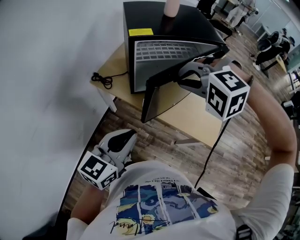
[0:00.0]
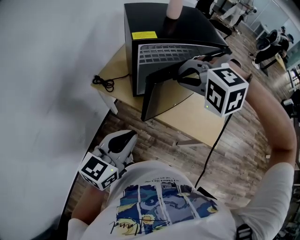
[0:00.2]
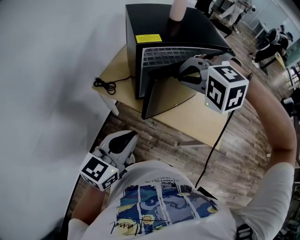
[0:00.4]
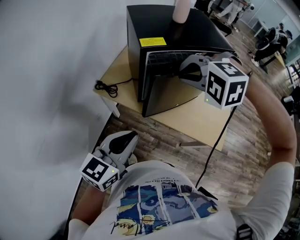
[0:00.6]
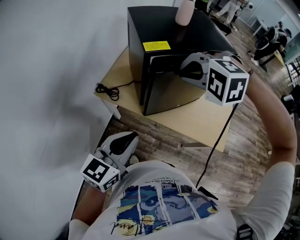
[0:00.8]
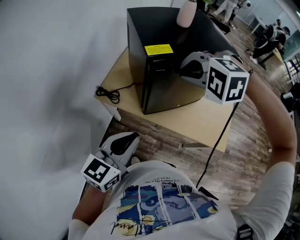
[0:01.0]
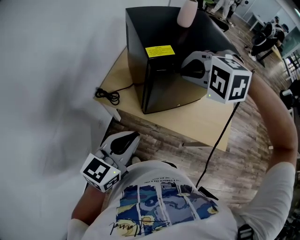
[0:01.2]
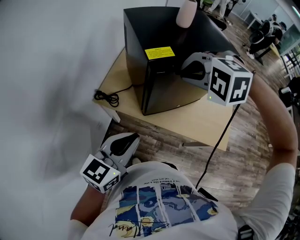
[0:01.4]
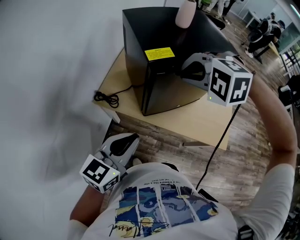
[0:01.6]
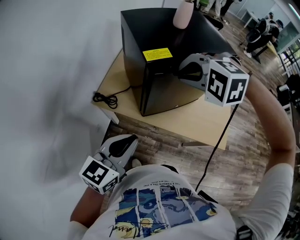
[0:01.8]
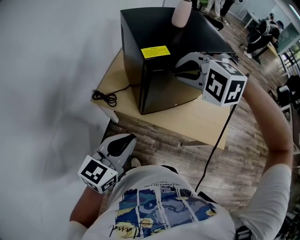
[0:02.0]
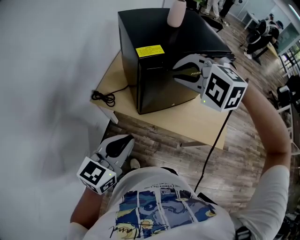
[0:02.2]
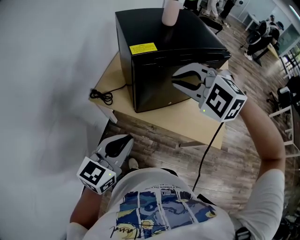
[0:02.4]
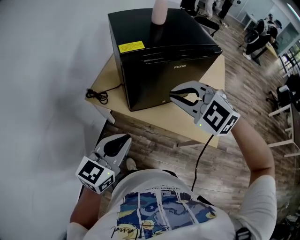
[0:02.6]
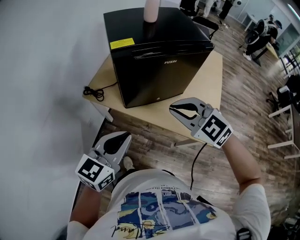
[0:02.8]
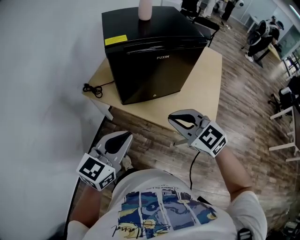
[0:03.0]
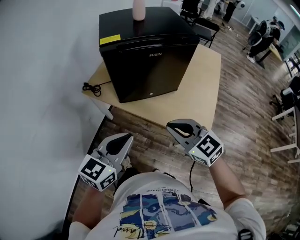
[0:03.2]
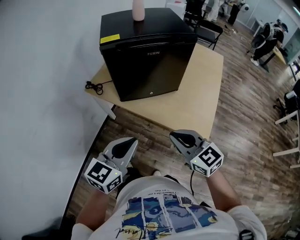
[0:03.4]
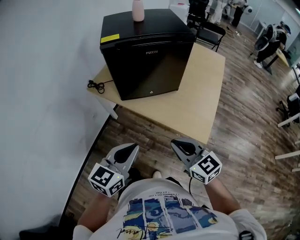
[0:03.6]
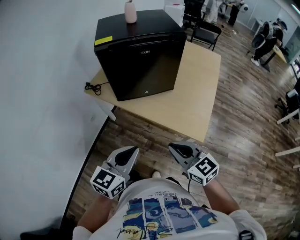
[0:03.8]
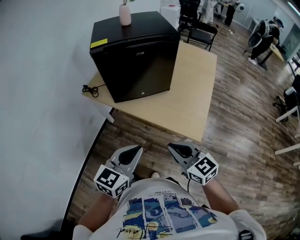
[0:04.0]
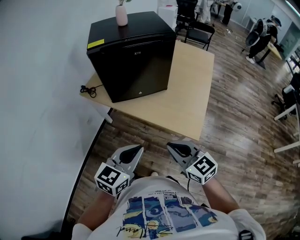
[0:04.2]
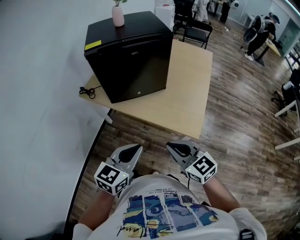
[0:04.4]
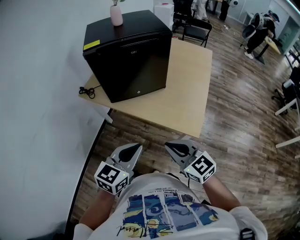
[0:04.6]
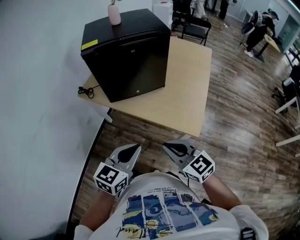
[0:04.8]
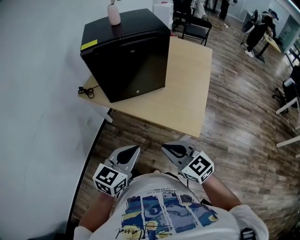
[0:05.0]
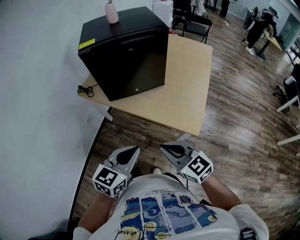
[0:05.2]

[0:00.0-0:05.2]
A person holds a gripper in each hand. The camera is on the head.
0:00.0 to 0:01.8: The grippers both shift forward and to the left by some 15 cm.
0:01.8 to 0:03.4: The left gripper is displaced to the right and backward by approximately 25 cm, while the right gripper travels backward and to the right by some 35 cm, and points its fingers about 40 degrees further upward.
0:03.4 to 0:05.2: The right gripper travels backward by some 10 cm; the left gripper travels to the right and backward by some 10 cm.

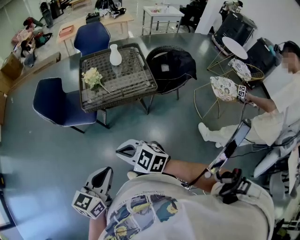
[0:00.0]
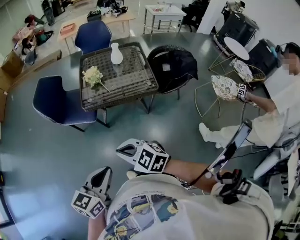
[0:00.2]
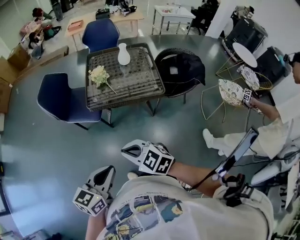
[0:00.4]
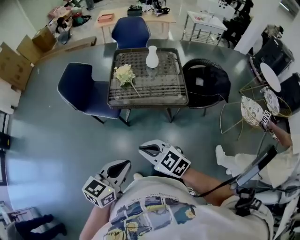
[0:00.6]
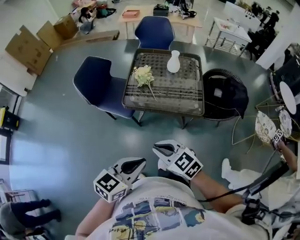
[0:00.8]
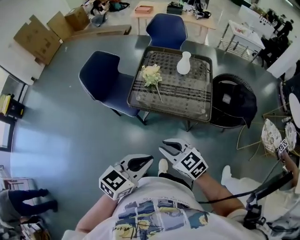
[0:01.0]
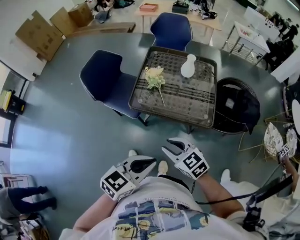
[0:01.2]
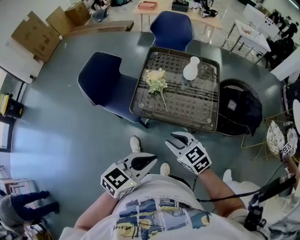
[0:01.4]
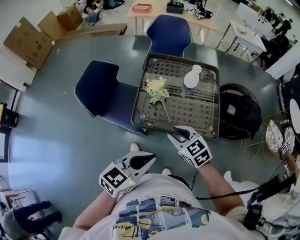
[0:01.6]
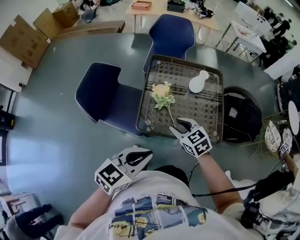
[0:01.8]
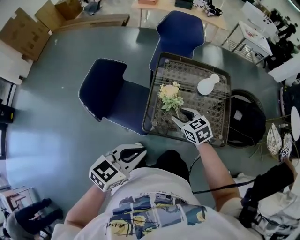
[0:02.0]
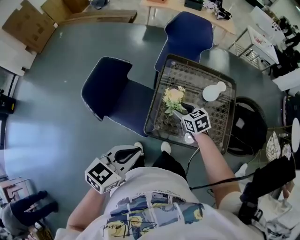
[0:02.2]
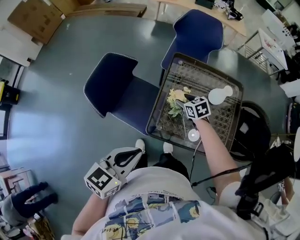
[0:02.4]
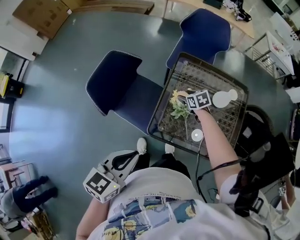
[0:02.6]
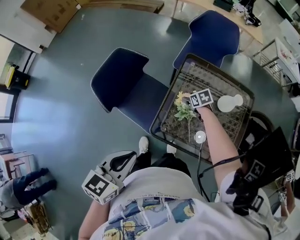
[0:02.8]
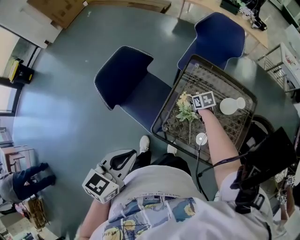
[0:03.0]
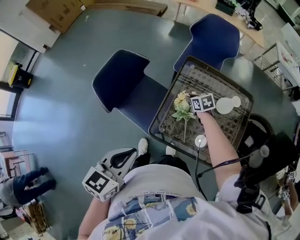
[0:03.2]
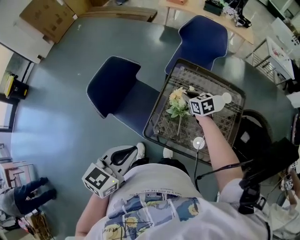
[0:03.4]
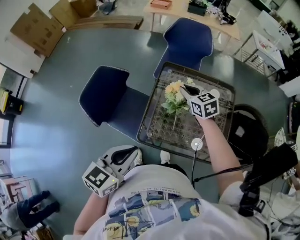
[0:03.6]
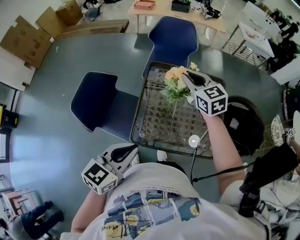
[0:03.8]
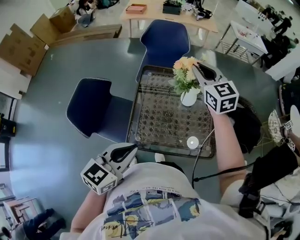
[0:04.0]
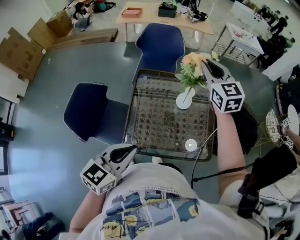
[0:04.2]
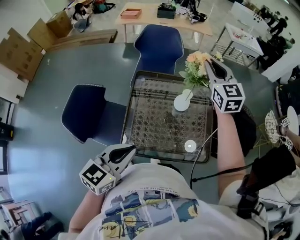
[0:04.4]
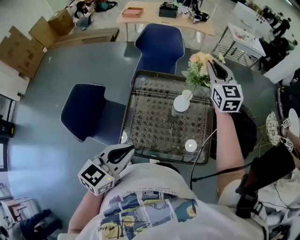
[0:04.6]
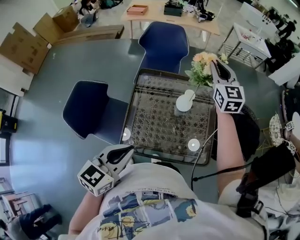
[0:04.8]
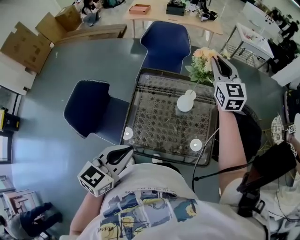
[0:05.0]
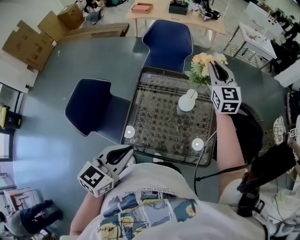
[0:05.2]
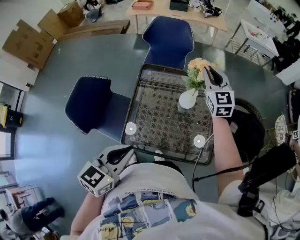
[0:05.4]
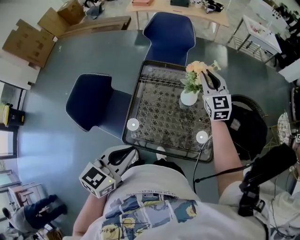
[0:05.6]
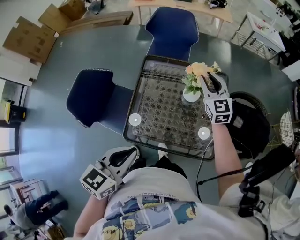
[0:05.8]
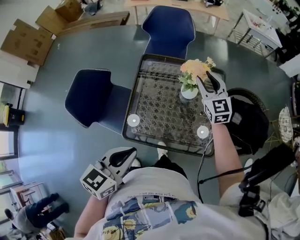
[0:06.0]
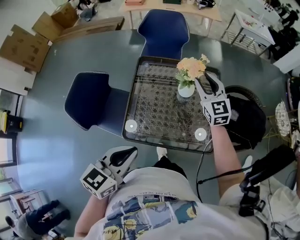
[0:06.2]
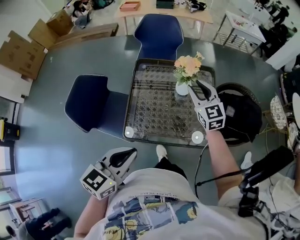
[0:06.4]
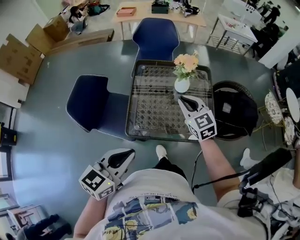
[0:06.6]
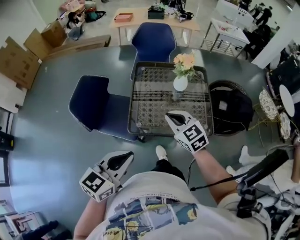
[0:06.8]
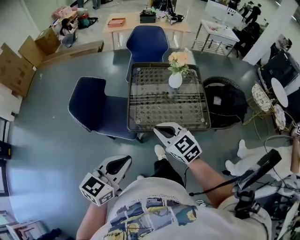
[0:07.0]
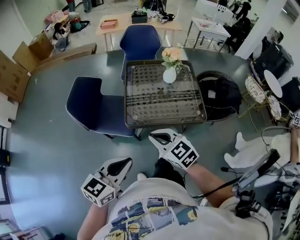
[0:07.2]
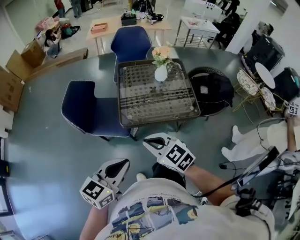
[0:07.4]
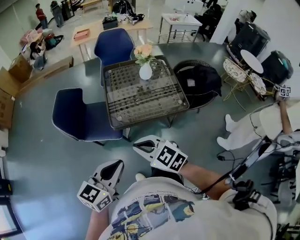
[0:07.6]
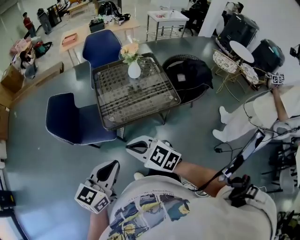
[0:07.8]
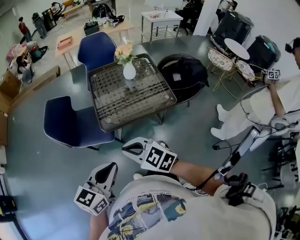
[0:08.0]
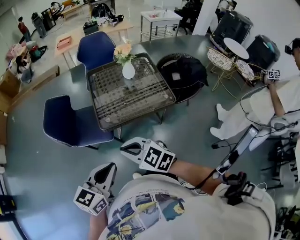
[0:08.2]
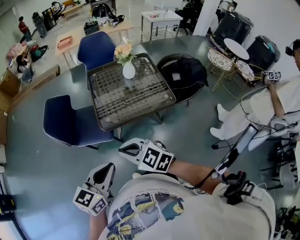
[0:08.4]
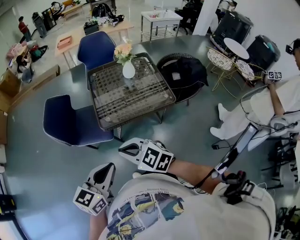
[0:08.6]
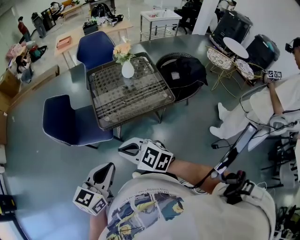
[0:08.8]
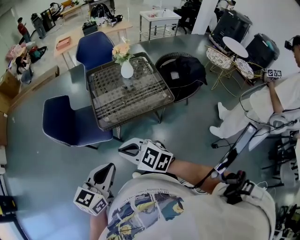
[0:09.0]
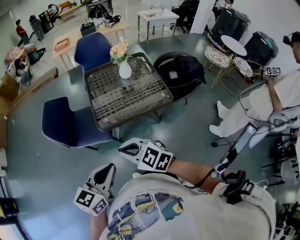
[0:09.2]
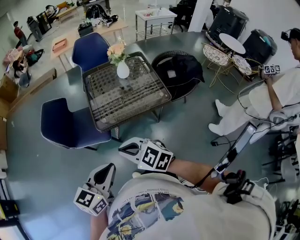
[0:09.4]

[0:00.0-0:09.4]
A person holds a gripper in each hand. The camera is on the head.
0:00.0 to 0:01.6: The grippers both shift forward by approximately 30 cm. The right gripper opens its fingers.
0:01.6 to 0:03.2: The left gripper ends up approximately 25 cm from where it was, and turns by some 30 degrees. The right gripper changes place by approximately 40 cm, rotates some 20 degrees, and opens and closes again.
0:03.2 to 0:04.8: The right gripper shifts roughly 35 cm upward, and points its fingers about 50 degrees further upward; the left gripper ends up some 15 cm from where it was, and turns by some 20 degrees.
0:04.8 to 0:06.2: The left gripper moves some 5 cm; the right gripper travels downward and backward by some 15 cm, and opens.
0:06.2 to 0:07.8: The left gripper heads backward, covering approximately 30 cm, while the right gripper goes roughly 60 cm backward and to the left, changes its angle by some 30 degrees, and closes its fingers.
0:07.8 to 0:09.4: The grippers move only a little.

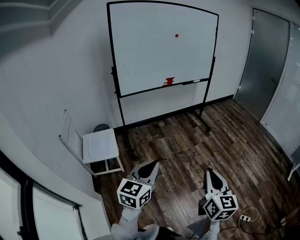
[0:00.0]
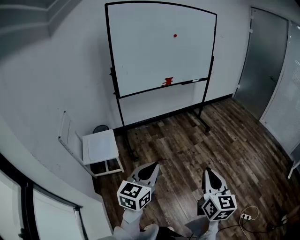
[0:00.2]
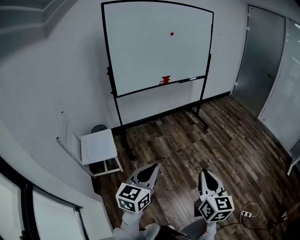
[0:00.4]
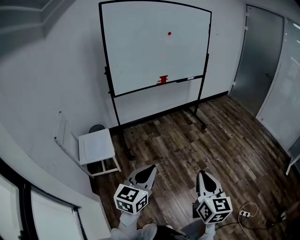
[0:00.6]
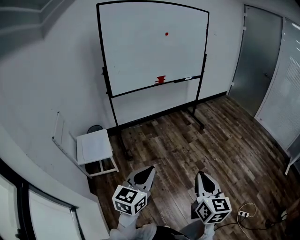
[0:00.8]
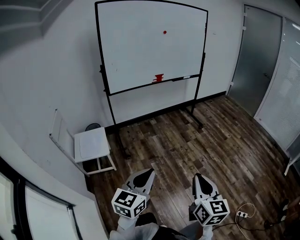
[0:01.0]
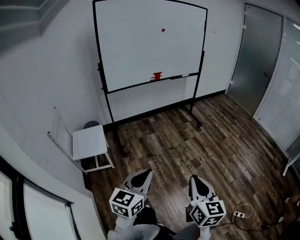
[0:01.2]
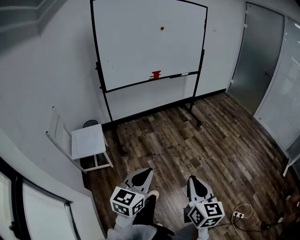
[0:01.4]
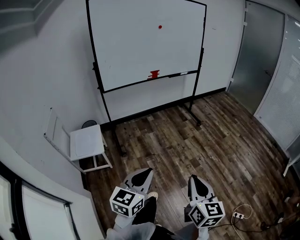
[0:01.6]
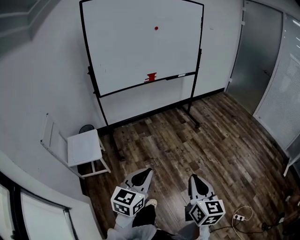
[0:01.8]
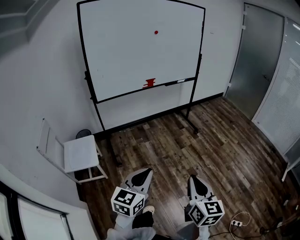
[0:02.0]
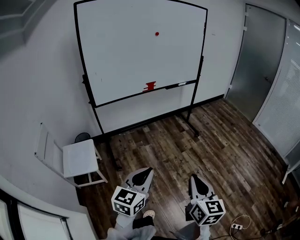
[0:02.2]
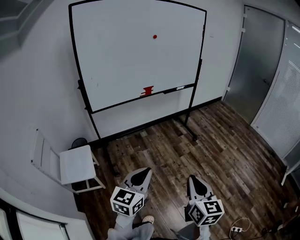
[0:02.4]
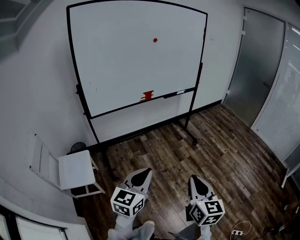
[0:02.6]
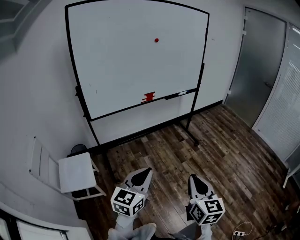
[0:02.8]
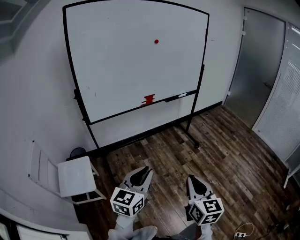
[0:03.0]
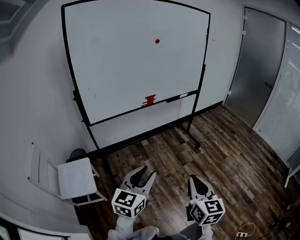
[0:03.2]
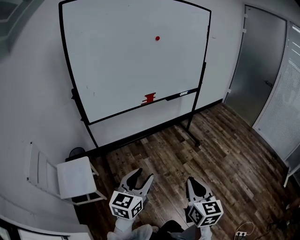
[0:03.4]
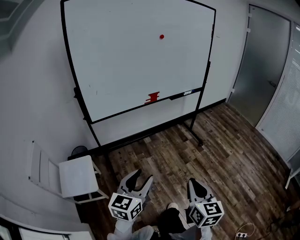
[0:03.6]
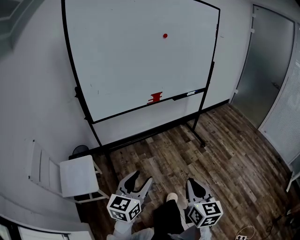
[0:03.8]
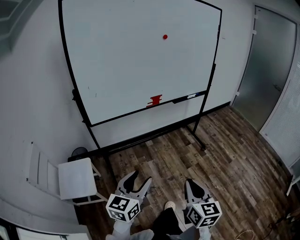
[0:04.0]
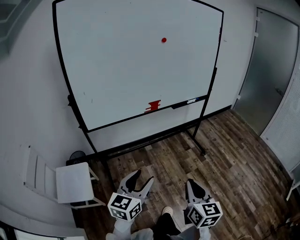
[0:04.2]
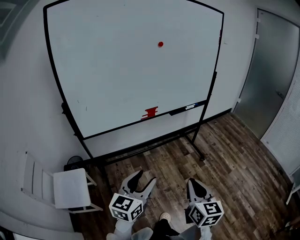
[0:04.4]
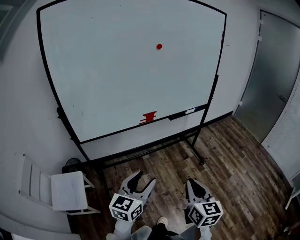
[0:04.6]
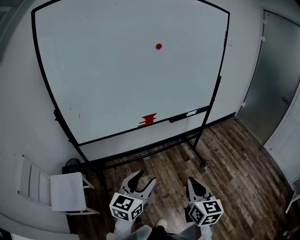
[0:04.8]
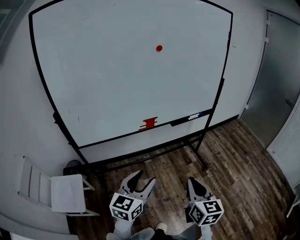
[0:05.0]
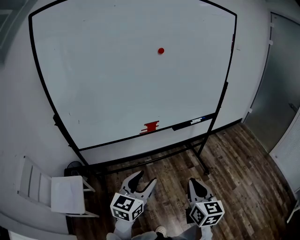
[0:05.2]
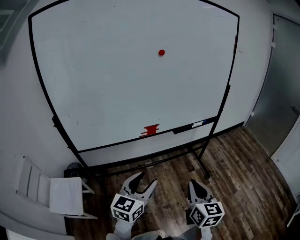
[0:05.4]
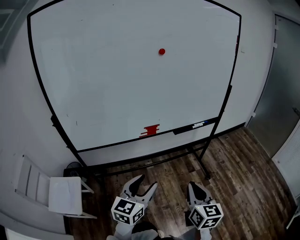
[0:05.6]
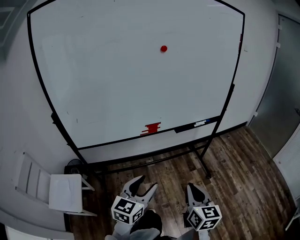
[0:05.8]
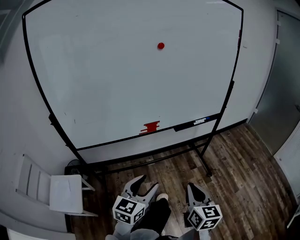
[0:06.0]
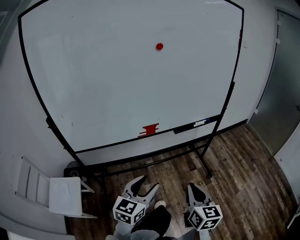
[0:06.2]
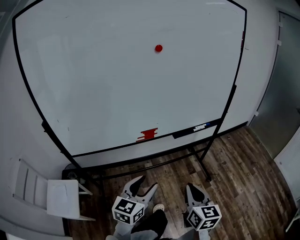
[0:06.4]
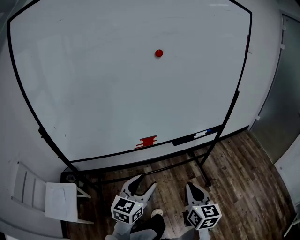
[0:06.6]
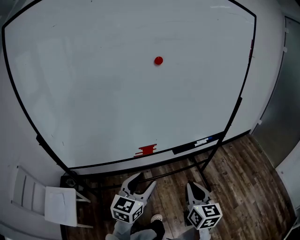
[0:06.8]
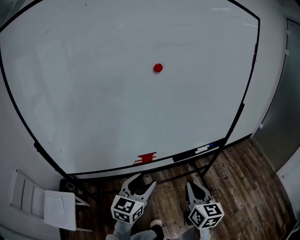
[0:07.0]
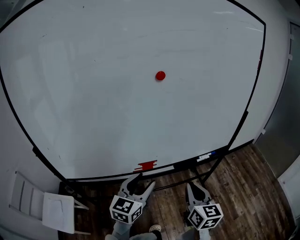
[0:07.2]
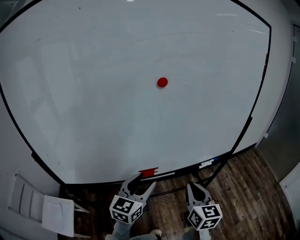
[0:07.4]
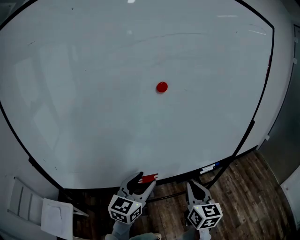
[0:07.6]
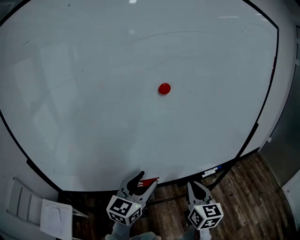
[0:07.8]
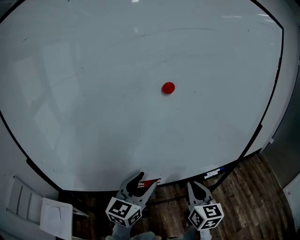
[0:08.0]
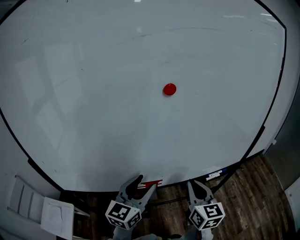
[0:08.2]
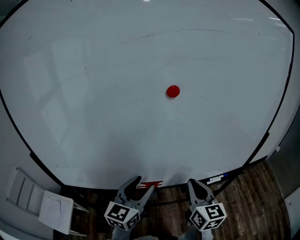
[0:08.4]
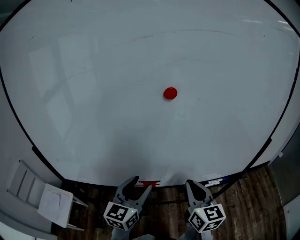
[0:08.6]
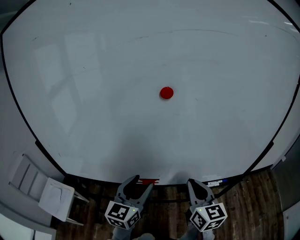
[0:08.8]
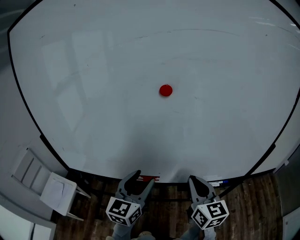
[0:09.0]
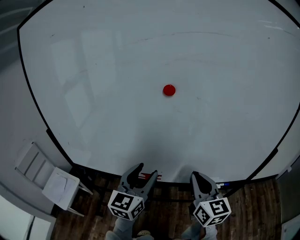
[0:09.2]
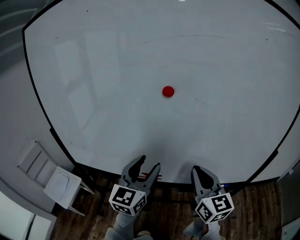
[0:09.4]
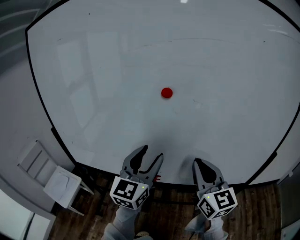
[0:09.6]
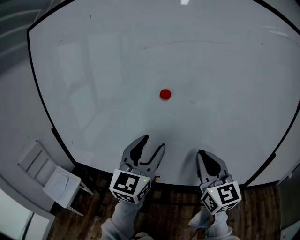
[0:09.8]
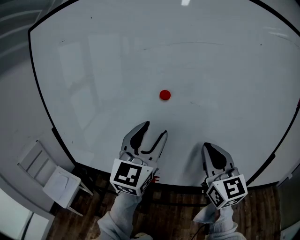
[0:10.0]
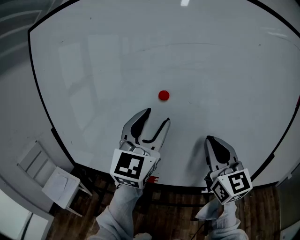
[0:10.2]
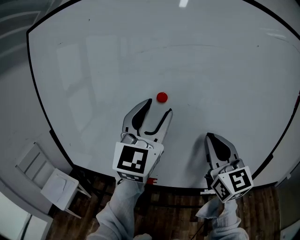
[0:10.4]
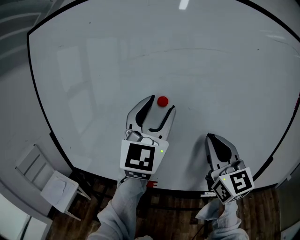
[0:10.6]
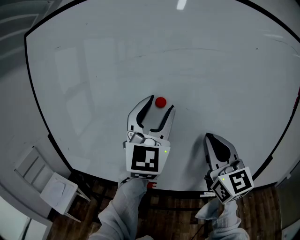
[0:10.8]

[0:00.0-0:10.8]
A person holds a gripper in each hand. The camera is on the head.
0:00.0 to 0:01.6: The left gripper shifts about 10 cm to the right. Meanwhile the right gripper moves to the right, some 5 cm.
0:01.6 to 0:03.0: The two grippers go approximately 30 cm forward.
0:03.0 to 0:04.6: Both grippers travel together forward, some 25 cm. The left gripper opens its fingers.
0:04.6 to 0:06.2: The grippers both shift forward by roughly 15 cm.
0:06.2 to 0:07.8: Both grippers move forward, about 30 cm.
0:07.8 to 0:09.2: The right gripper is displaced upward by some 5 cm, and swivels about 20 degrees, while the left gripper rotates some 20 degrees.
0:09.2 to 0:10.8: Both grippers move upward, approximately 25 cm. The right gripper turns by some 30 degrees. The left gripper rotates roughly 40 degrees.
